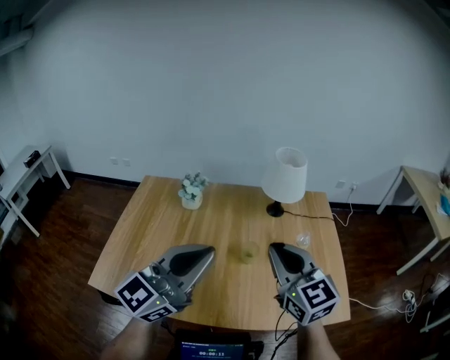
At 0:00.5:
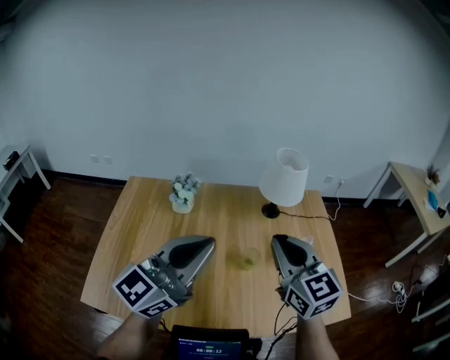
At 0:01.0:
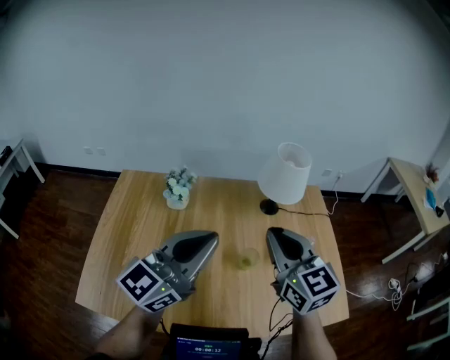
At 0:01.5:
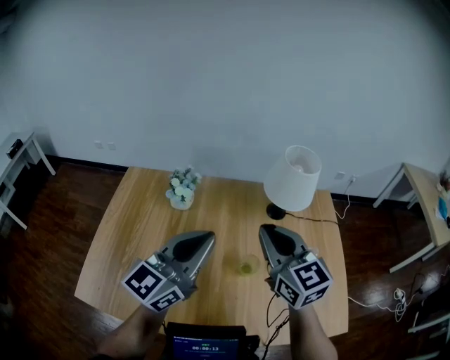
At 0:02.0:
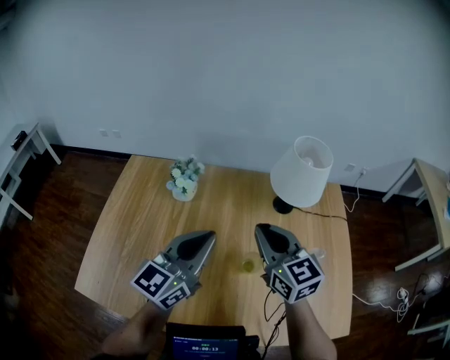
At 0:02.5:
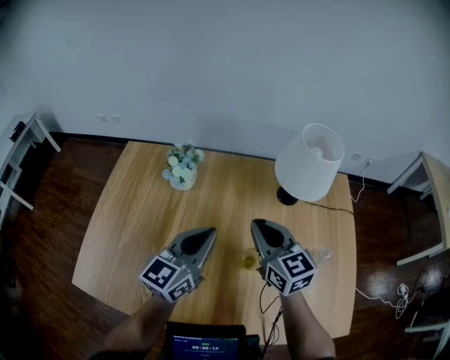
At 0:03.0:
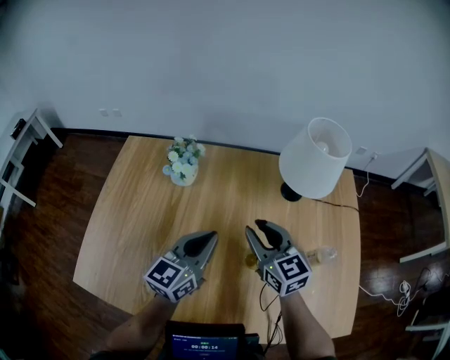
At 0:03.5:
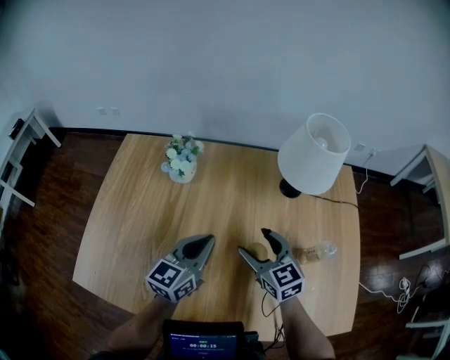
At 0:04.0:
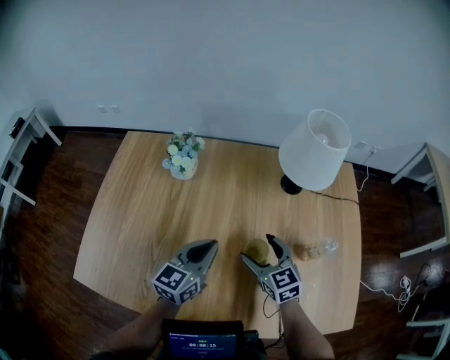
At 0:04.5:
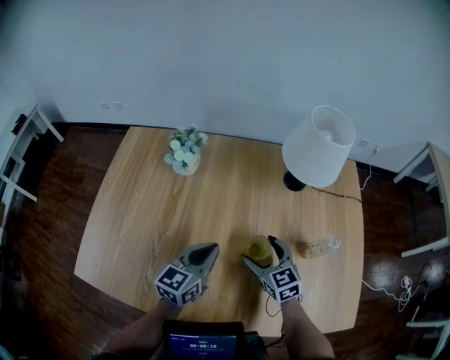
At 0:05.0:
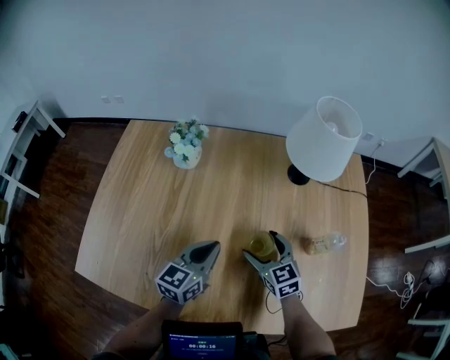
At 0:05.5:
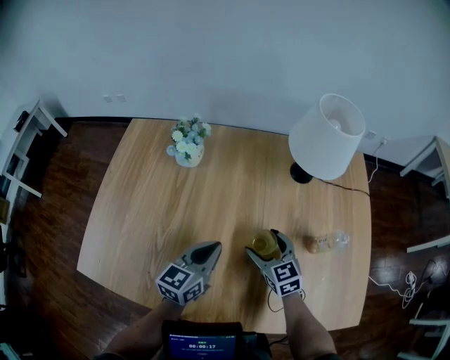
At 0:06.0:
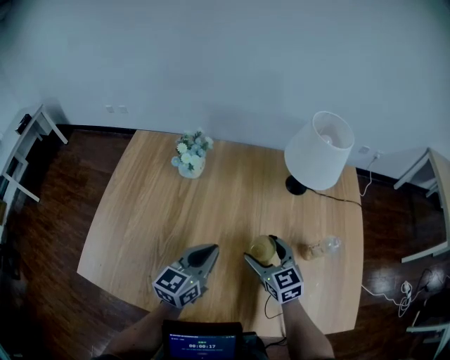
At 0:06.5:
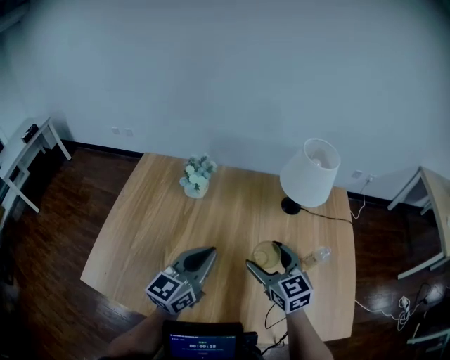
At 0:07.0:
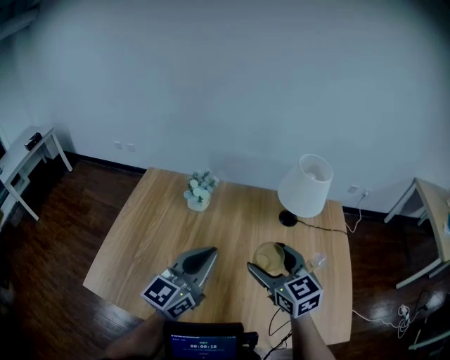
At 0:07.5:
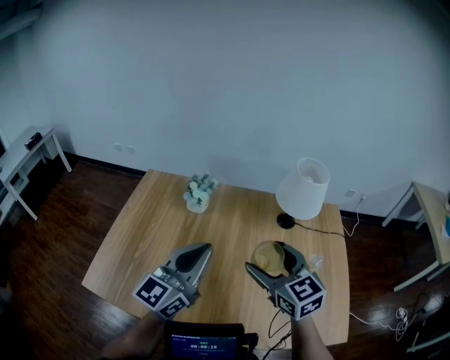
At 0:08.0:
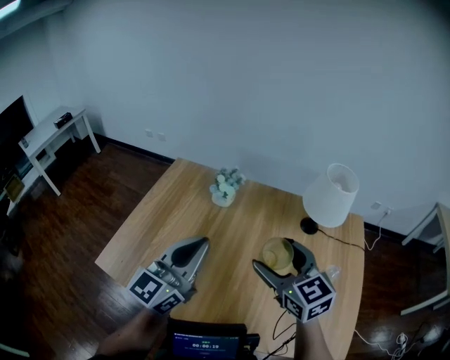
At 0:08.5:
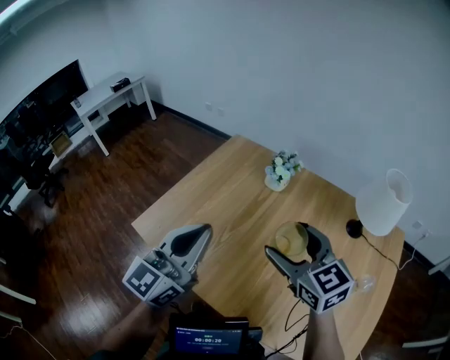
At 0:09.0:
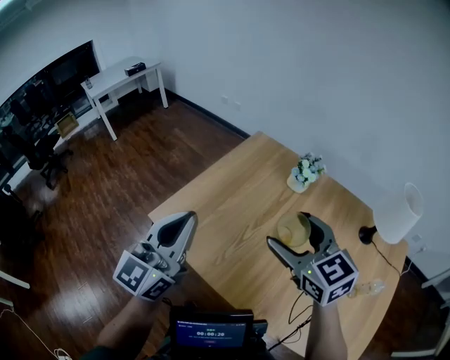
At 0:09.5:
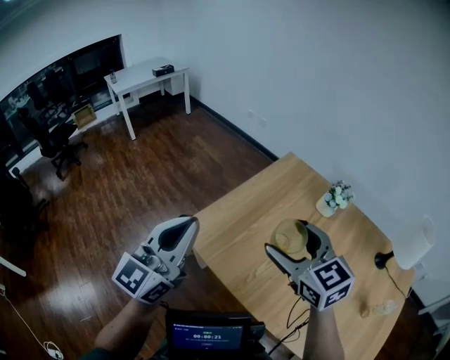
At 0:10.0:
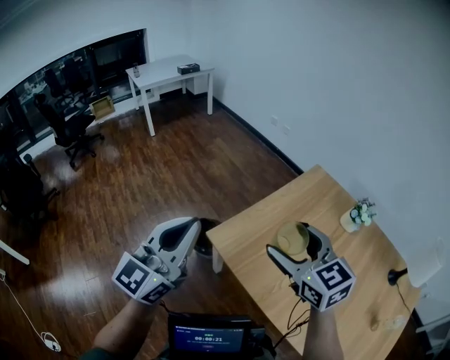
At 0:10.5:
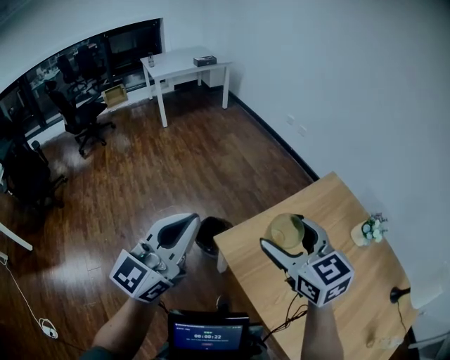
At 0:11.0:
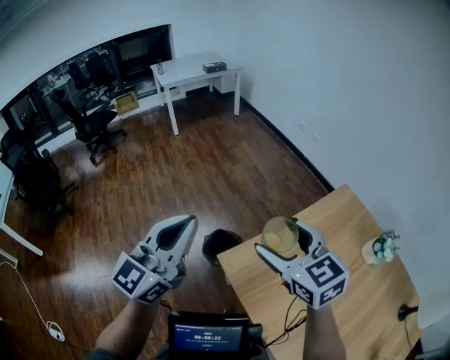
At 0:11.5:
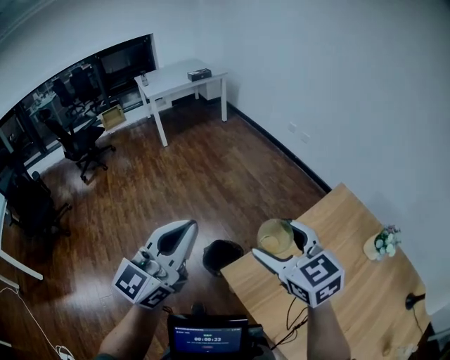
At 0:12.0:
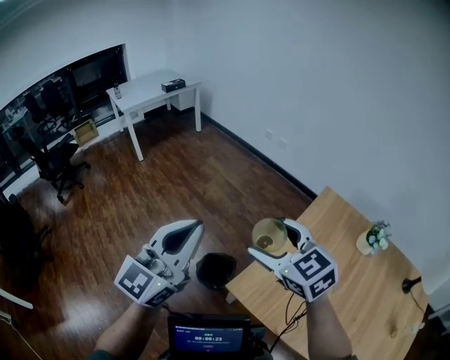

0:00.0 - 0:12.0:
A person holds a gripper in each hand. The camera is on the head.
0:00.0 - 0:02.0: Both grippers travel together forward and downward, about 20 cm.
0:02.0 - 0:04.0: Both grippers travel together downward, roughly 20 cm. The right gripper opens its fingers.
0:04.0 - 0:06.0: The grippers stay close to where they were, moving slightly.
0:06.0 - 0:08.0: The left gripper shifts some 20 cm upward and to the left, and turns by some 30 degrees. Meanwhile the right gripper heads upward, covering approximately 25 cm.
0:08.0 - 0:10.0: The pair of grippers is taken about 40 cm. The left gripper rotates approximately 30 degrees. Meanwhile the right gripper turns by roughly 30 degrees.
0:10.0 - 0:12.0: The right gripper heads forward and to the left, covering roughly 25 cm. The left gripper travels forward by approximately 20 cm.

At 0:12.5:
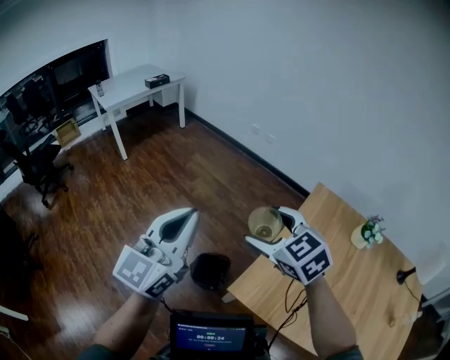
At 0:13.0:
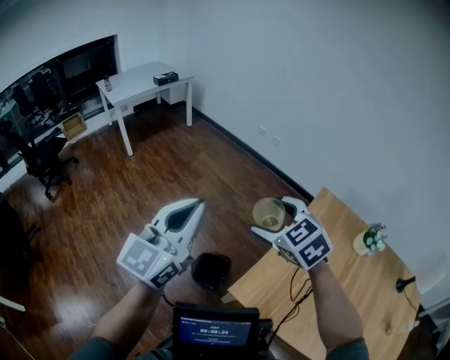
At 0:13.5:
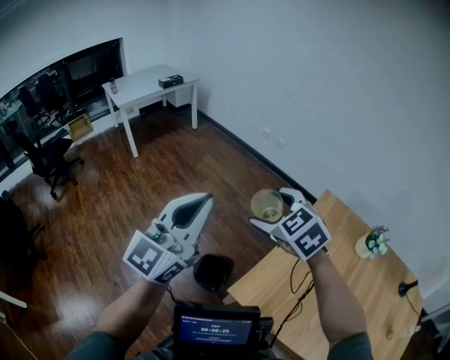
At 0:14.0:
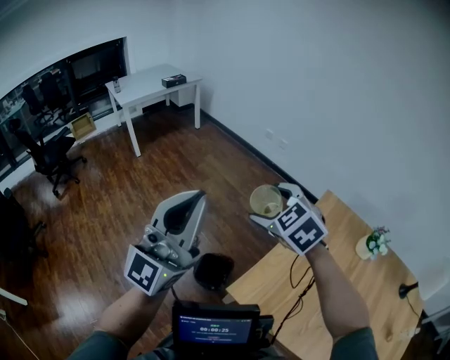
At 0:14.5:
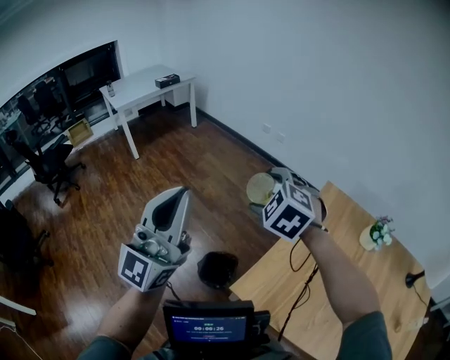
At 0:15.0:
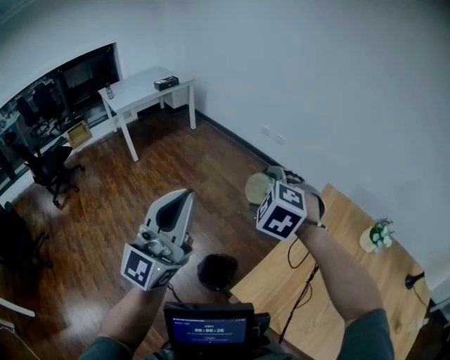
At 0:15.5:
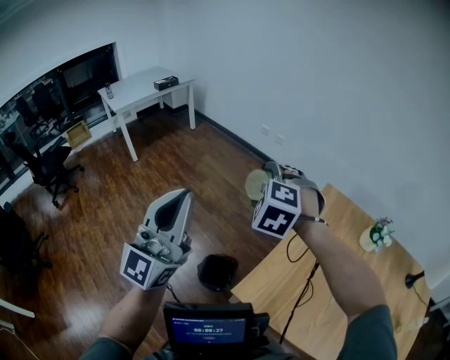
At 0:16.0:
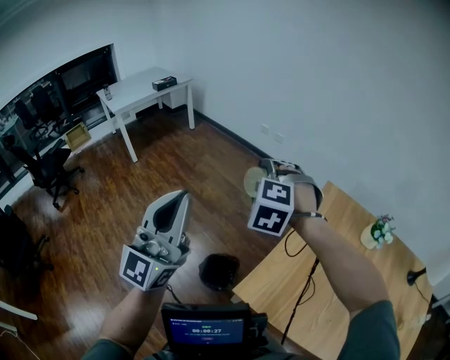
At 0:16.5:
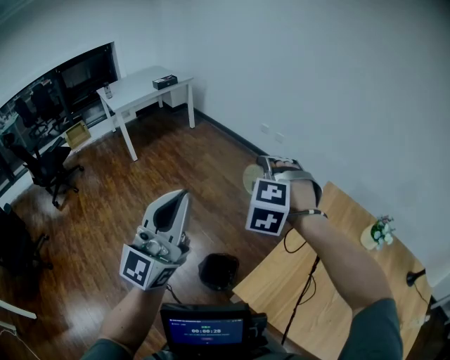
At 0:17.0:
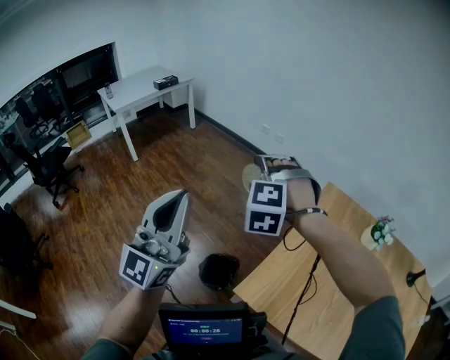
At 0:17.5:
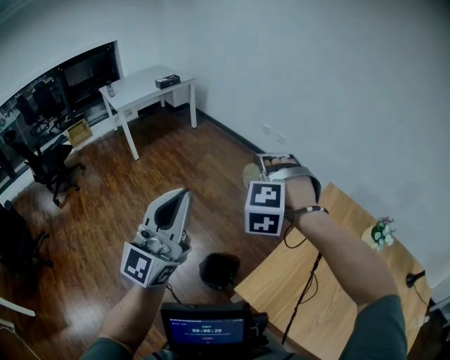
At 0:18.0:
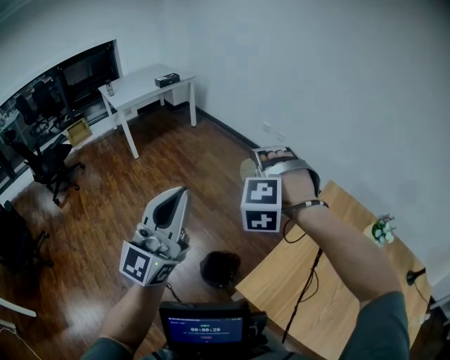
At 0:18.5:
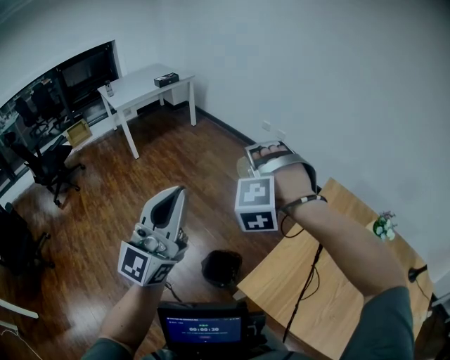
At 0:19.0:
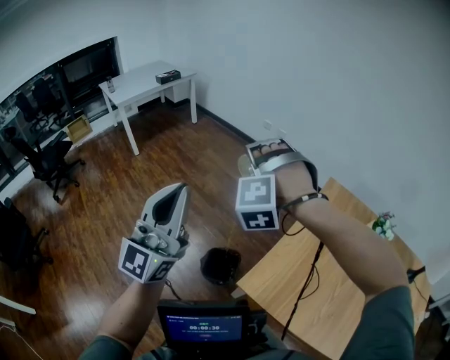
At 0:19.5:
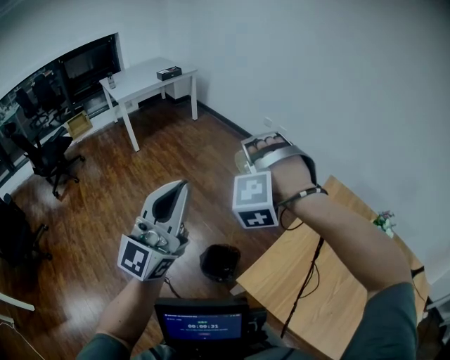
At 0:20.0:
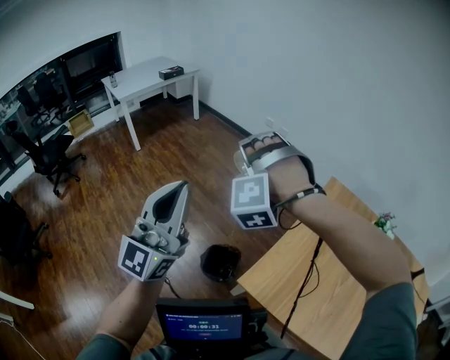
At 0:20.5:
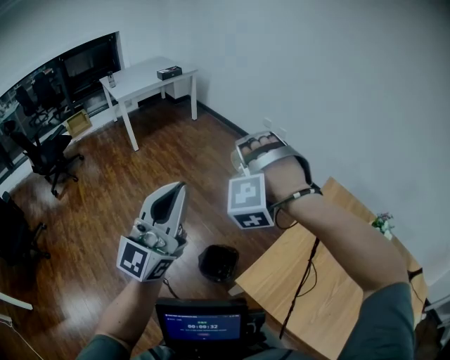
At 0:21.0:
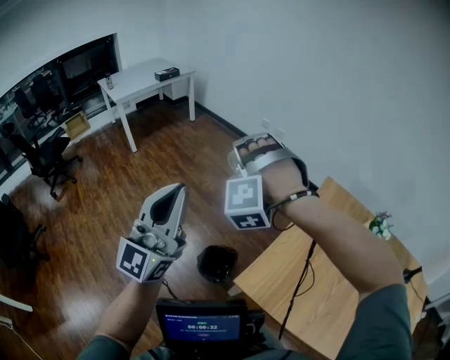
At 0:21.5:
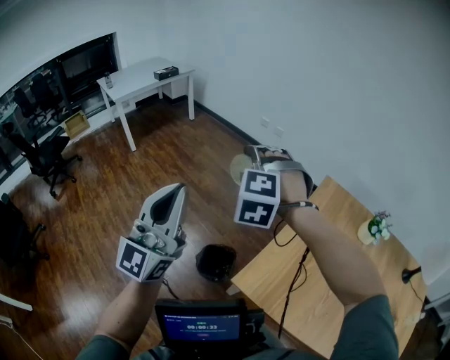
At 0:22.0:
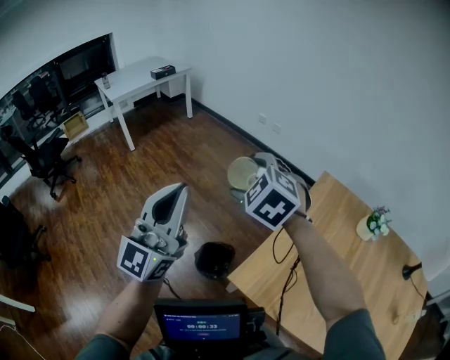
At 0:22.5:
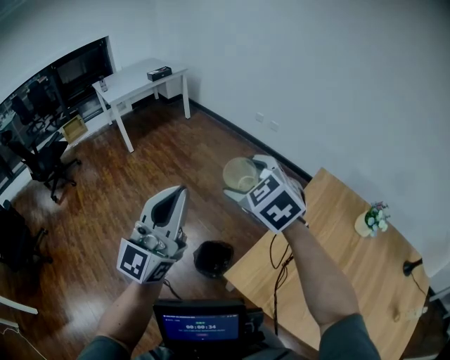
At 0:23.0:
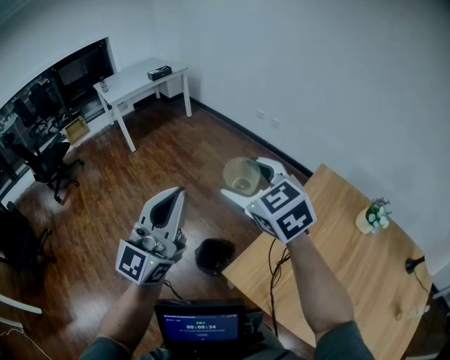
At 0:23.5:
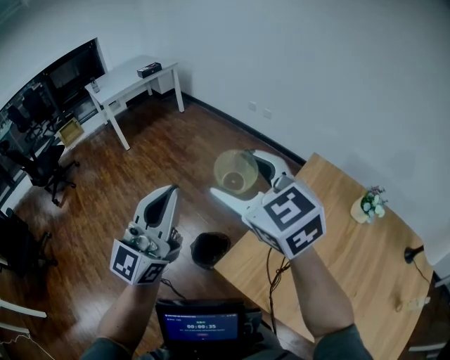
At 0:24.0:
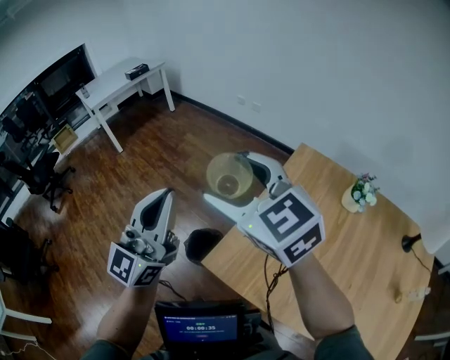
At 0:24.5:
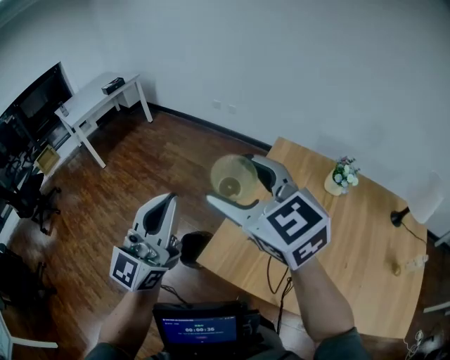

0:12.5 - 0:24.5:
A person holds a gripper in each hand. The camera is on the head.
0:12.5 - 0:14.5: The left gripper shifts roughly 5 cm upward, and swivels about 30 degrees; the right gripper travels forward by about 10 cm, and turns by about 30 degrees.
0:14.5 - 0:16.5: The right gripper changes its angle by approximately 30 degrees.
0:16.5 - 0:18.5: The right gripper rotates approximately 20 degrees.
0:18.5 - 0:20.5: The grippers move only a little.
0:20.5 - 0:22.5: The two grippers go some 5 cm to the right. The right gripper rotates around the line of its fingers by some 70 degrees, clockwise from behind.
0:22.5 - 0:24.5: The right gripper travels backward, to the right and upward by about 20 cm, and changes its angle by some 30 degrees, while the left gripper is displaced to the right by approximately 10 cm.

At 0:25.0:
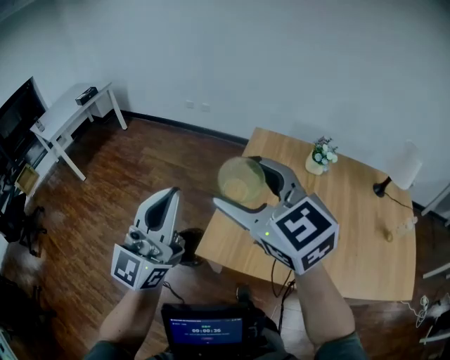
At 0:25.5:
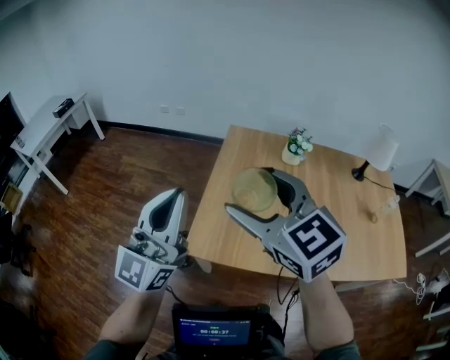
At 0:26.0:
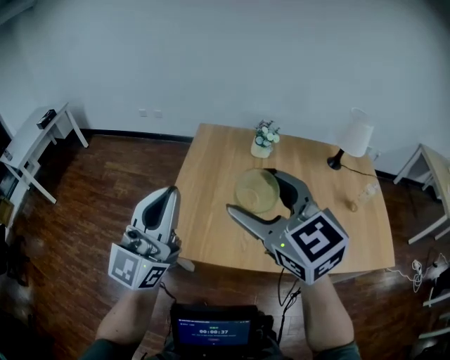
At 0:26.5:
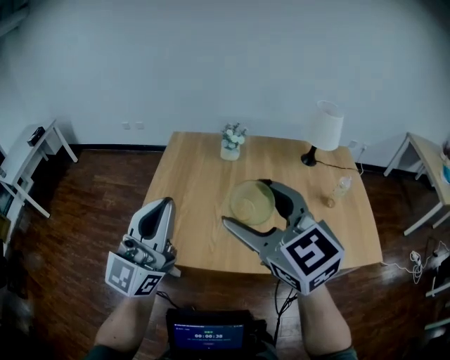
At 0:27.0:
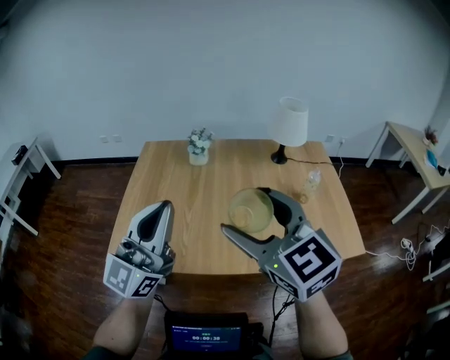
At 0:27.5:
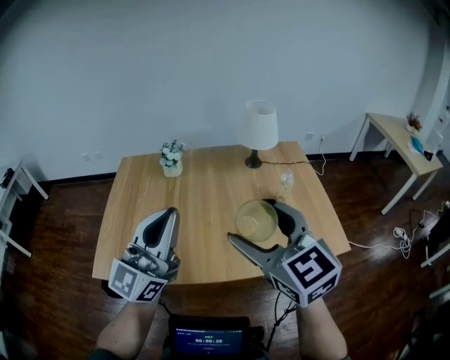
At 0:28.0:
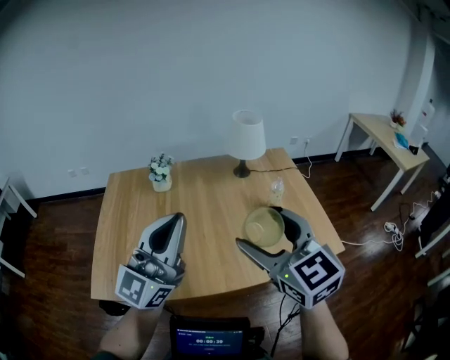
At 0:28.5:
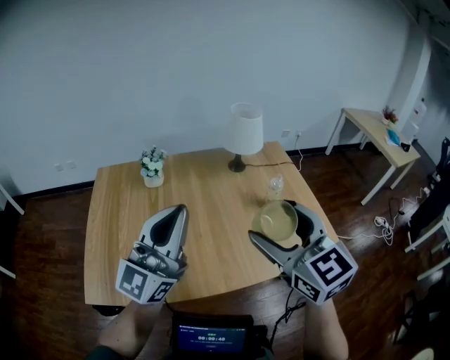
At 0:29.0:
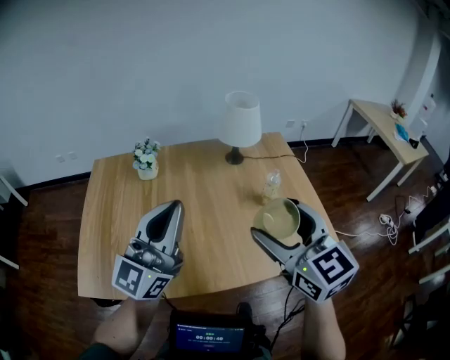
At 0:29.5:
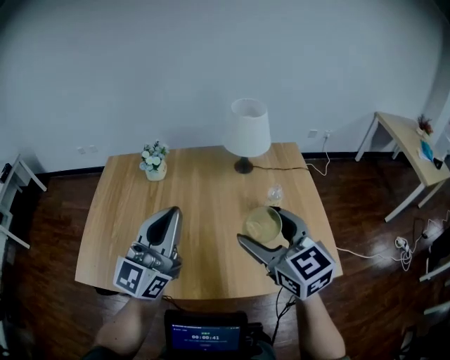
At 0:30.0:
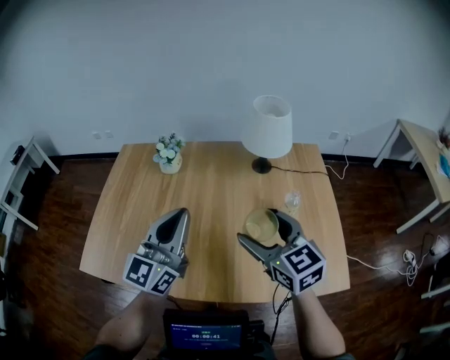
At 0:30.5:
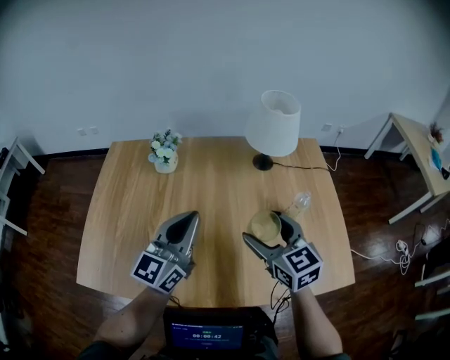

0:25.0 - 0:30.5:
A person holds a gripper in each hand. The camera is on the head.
0:25.0 - 0:27.0: The grippers both shift to the right by about 40 cm. The right gripper changes its angle by about 20 degrees, while the left gripper rotates some 20 degrees.
0:27.0 - 0:28.5: Both grippers move to the right and forward, approximately 15 cm.
0:28.5 - 0:30.5: The grippers both shift downward and forward by approximately 20 cm. The left gripper rotates approximately 20 degrees.
